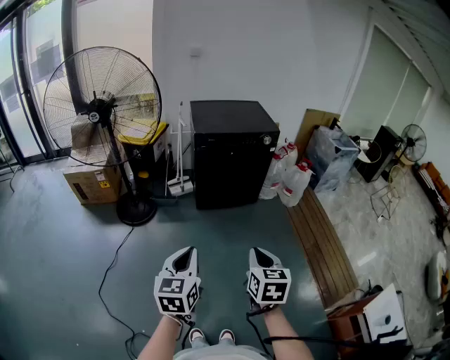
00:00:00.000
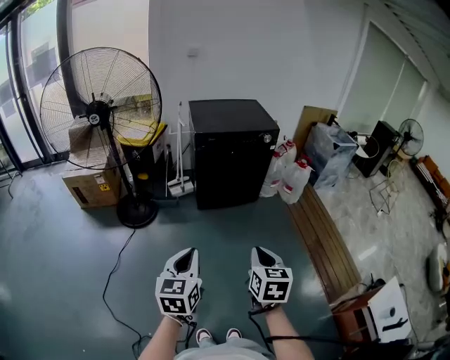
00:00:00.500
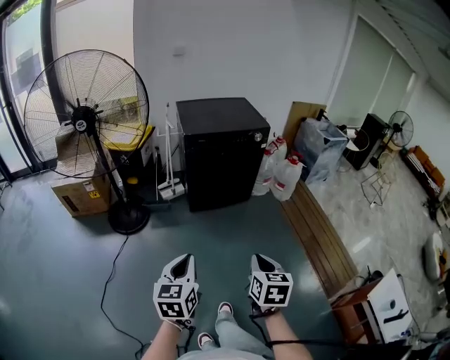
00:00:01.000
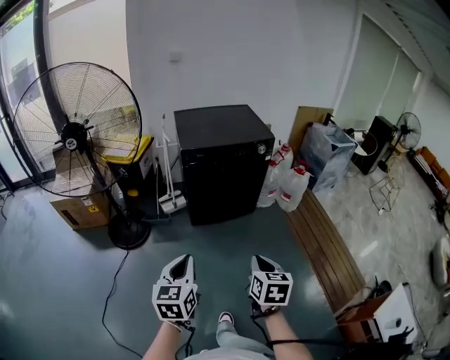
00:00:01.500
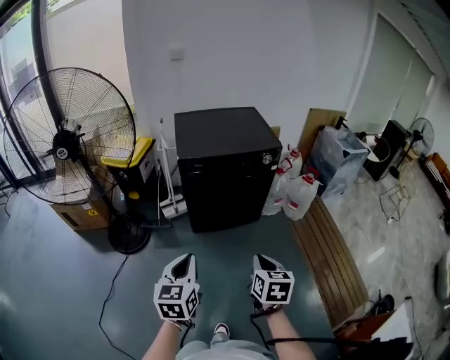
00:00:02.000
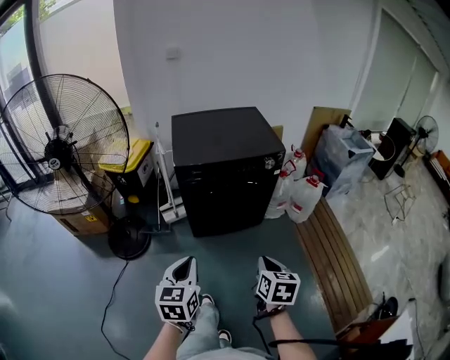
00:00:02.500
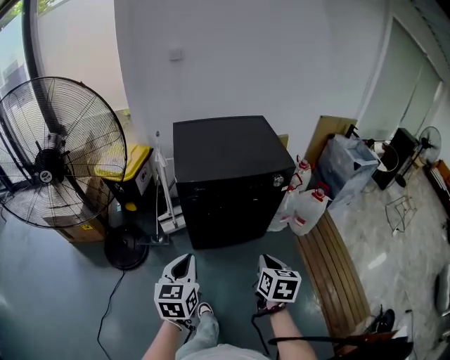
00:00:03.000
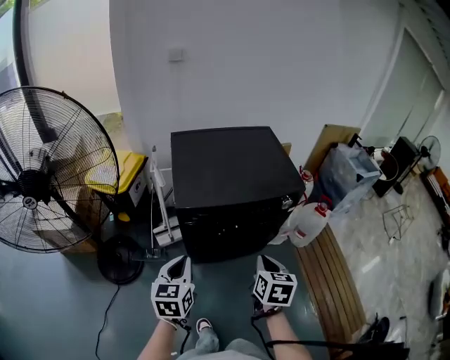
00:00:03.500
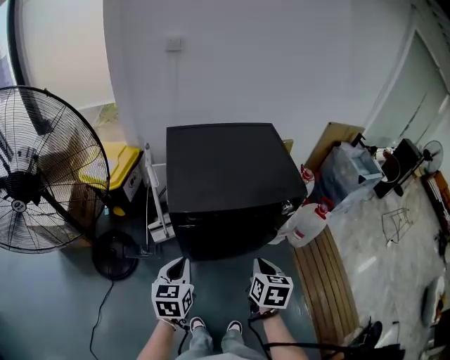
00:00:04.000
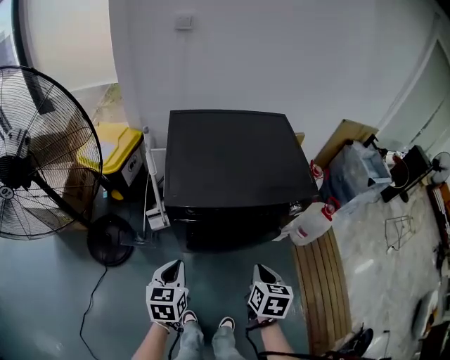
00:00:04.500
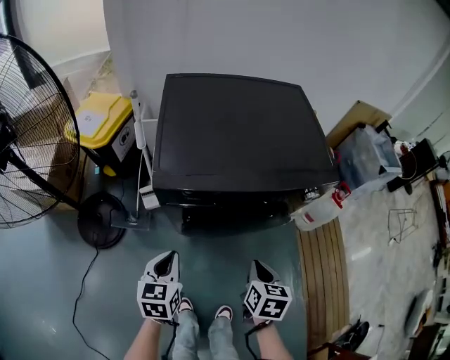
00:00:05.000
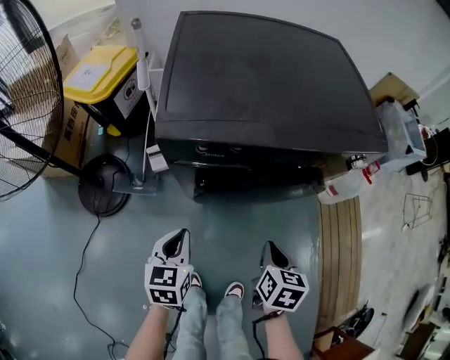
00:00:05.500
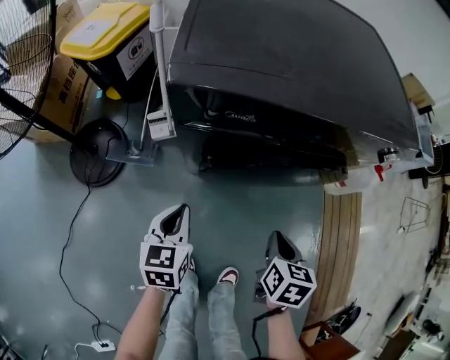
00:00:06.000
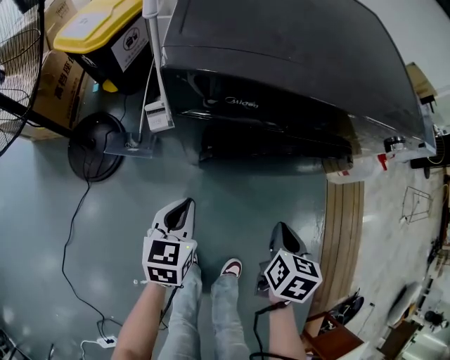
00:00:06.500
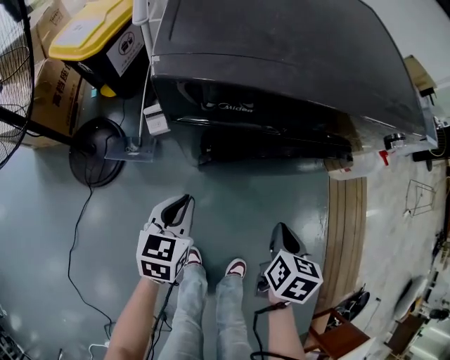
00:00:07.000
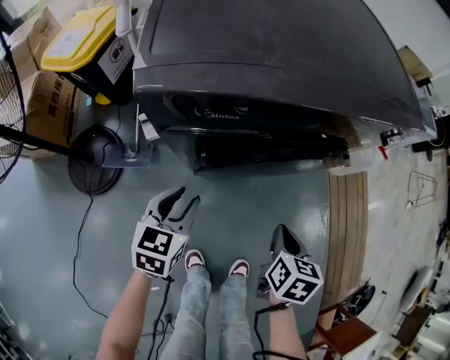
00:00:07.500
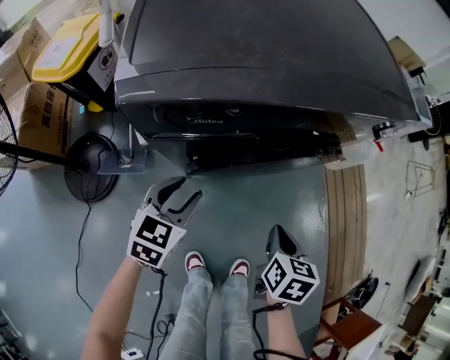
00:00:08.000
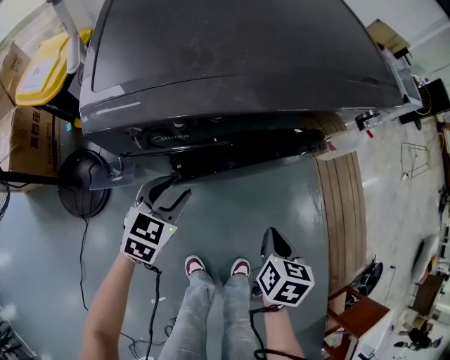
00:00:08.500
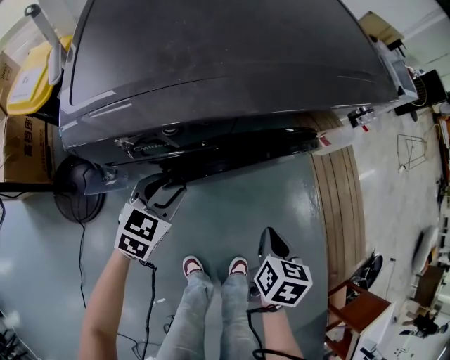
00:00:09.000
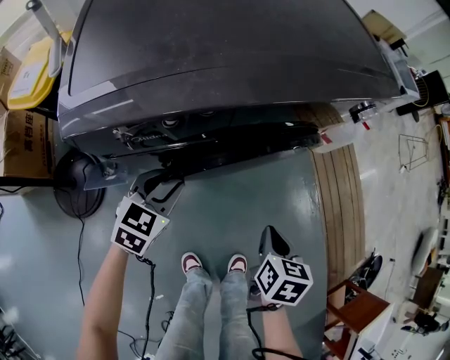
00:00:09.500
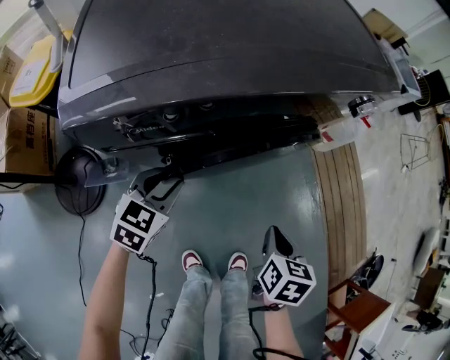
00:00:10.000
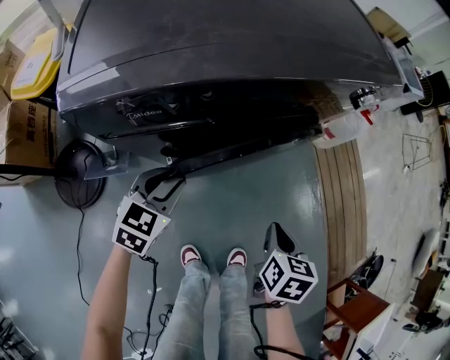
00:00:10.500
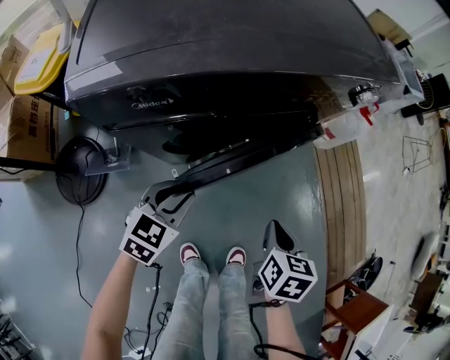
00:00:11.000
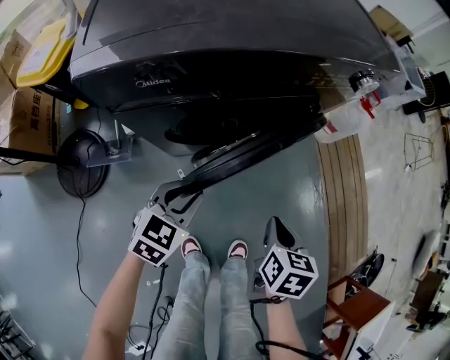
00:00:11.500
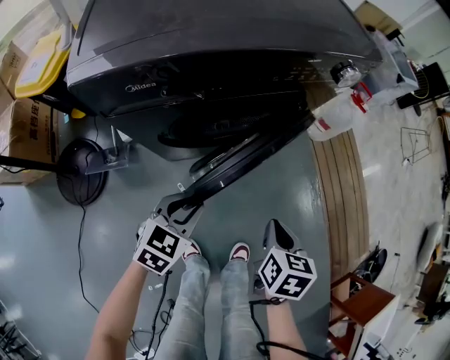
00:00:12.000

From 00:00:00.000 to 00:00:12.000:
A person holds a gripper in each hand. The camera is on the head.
From 00:00:00.000 to 00:00:02.000: Both grippers travel together forward, some 25 cm.
From 00:00:02.000 to 00:00:04.000: Both grippers travel together forward, some 35 cm.
From 00:00:04.000 to 00:00:06.000: Both grippers move downward, some 30 cm.
From 00:00:06.000 to 00:00:08.000: The left gripper goes some 10 cm forward, rotates about 30 degrees, and opens up.
From 00:00:08.000 to 00:00:10.000: The grippers make only small movements.
From 00:00:10.000 to 00:00:12.000: The right gripper shifts by roughly 5 cm; the left gripper moves to the right and backward, some 15 cm.

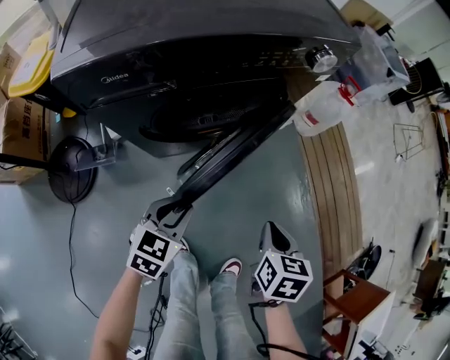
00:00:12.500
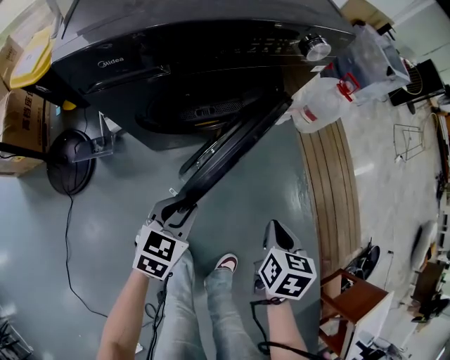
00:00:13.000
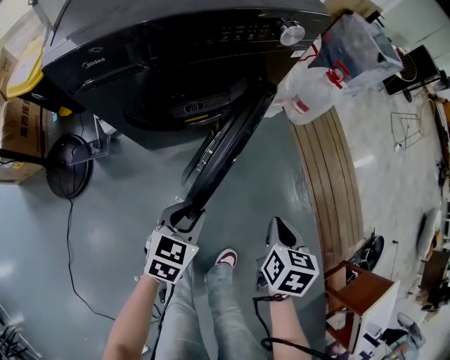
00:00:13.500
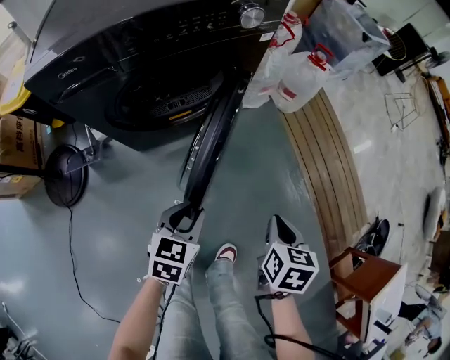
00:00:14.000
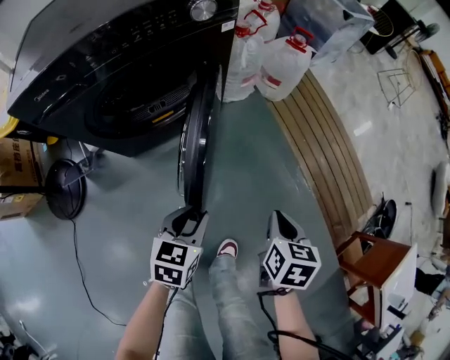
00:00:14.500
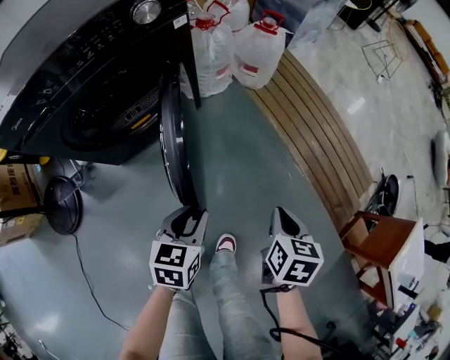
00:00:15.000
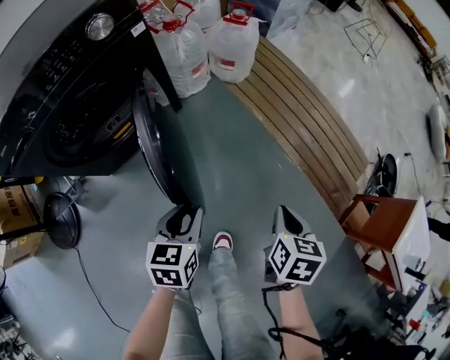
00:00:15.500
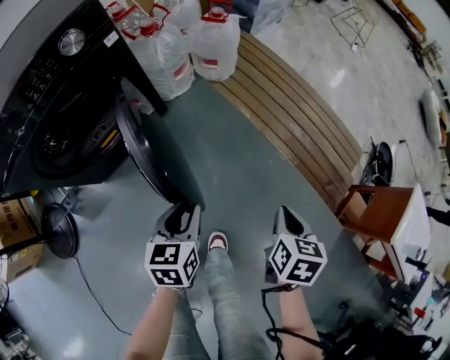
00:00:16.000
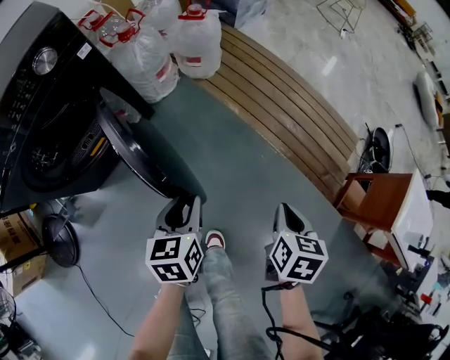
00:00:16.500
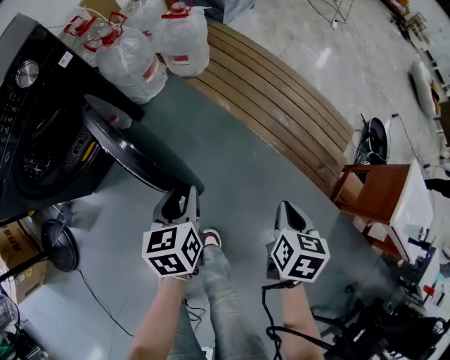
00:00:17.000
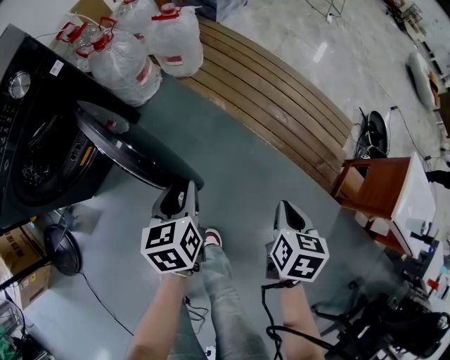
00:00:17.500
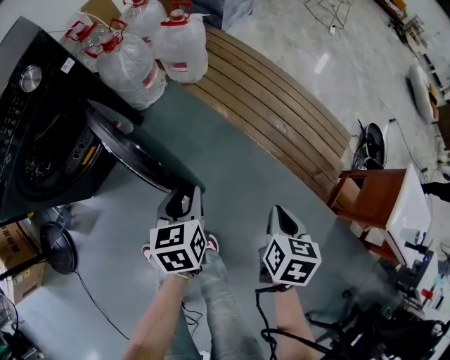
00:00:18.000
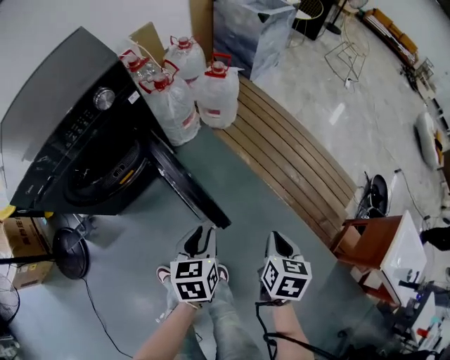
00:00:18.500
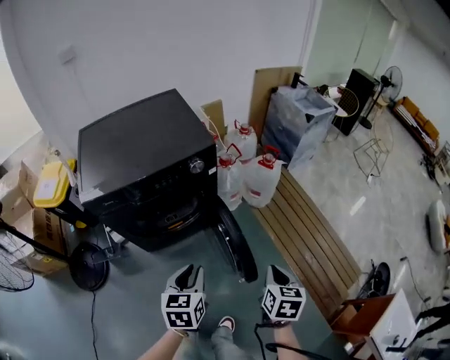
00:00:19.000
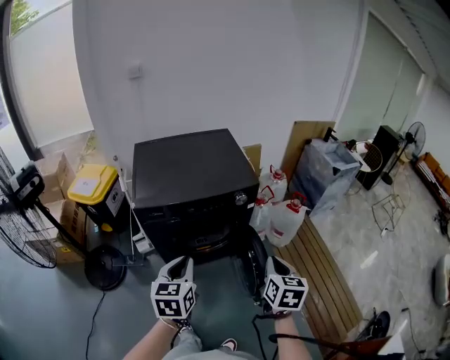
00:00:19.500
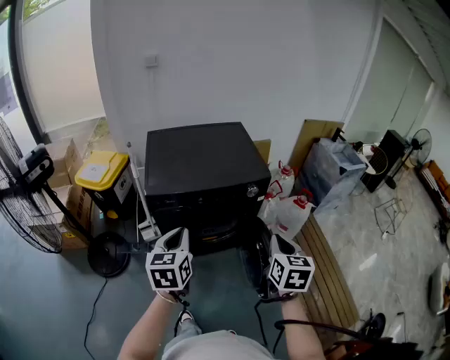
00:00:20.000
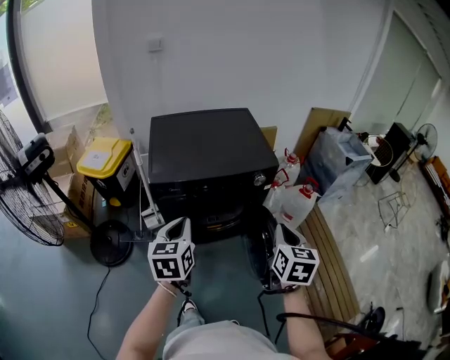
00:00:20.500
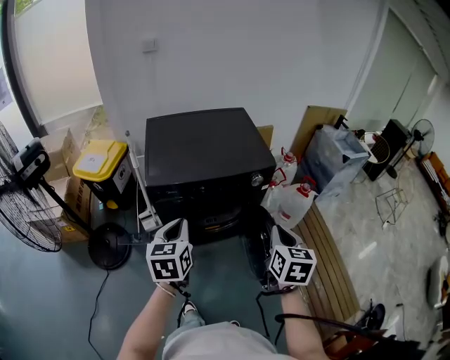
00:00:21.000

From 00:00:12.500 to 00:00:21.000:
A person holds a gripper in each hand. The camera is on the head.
From 00:00:12.500 to 00:00:14.500: The grippers both shift to the right by approximately 20 cm.
From 00:00:14.500 to 00:00:16.500: The right gripper shifts approximately 20 cm to the right, and turns by roughly 20 degrees, while the left gripper travels to the right and forward by about 20 cm.
From 00:00:16.500 to 00:00:19.000: Both grippers travel together upward and to the left, some 30 cm. The right gripper rotates approximately 30 degrees.
From 00:00:19.000 to 00:00:21.000: The right gripper heads upward, to the left and forward, covering approximately 25 cm, and turns by approximately 20 degrees. The left gripper travels to the left and upward by roughly 25 cm, and turns by about 20 degrees.

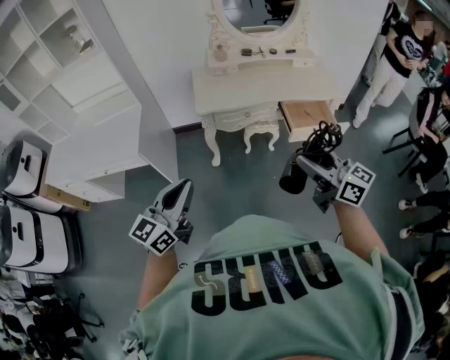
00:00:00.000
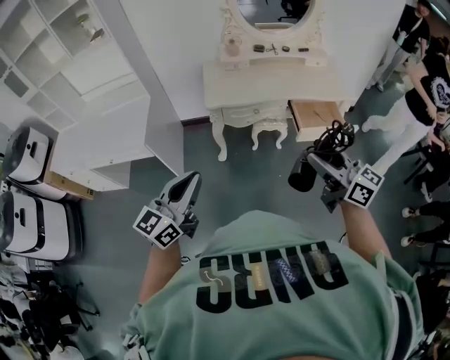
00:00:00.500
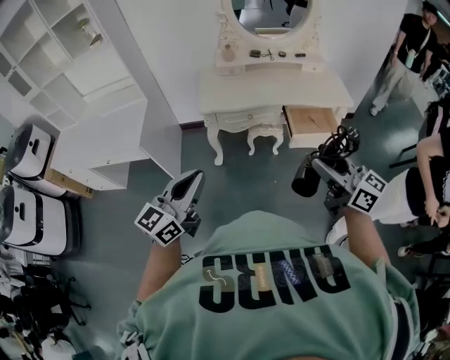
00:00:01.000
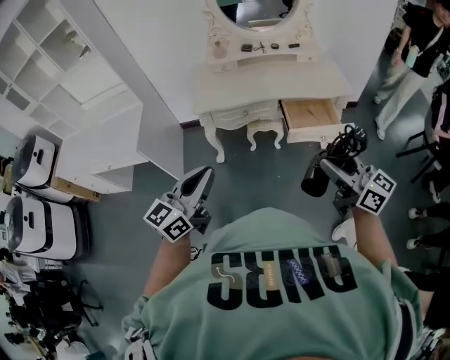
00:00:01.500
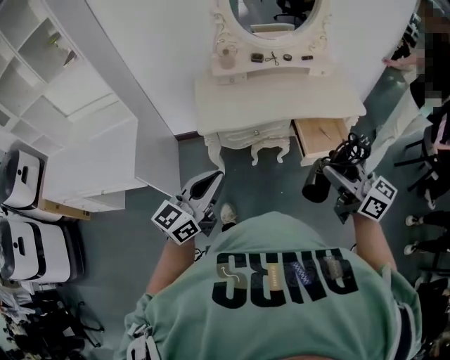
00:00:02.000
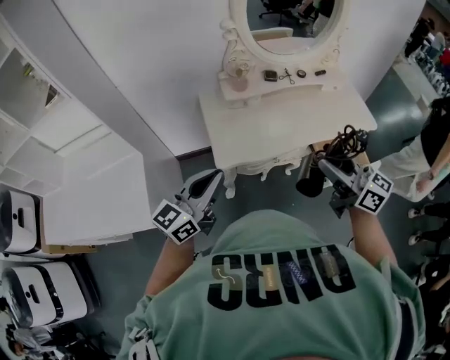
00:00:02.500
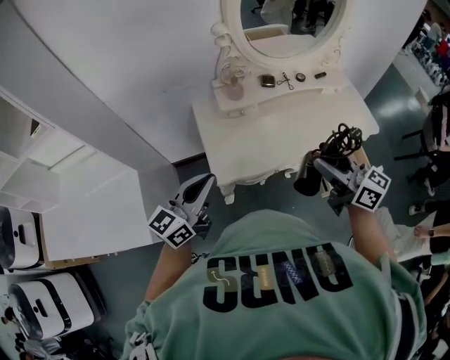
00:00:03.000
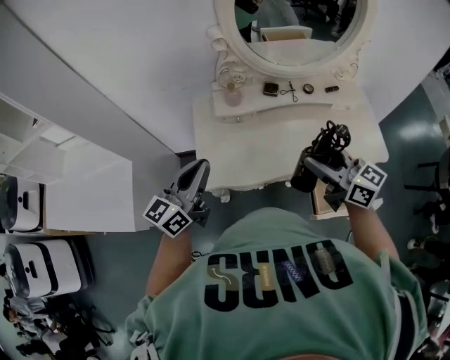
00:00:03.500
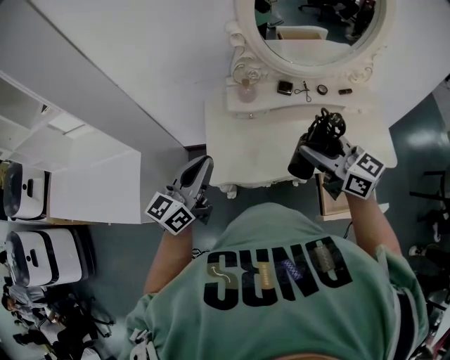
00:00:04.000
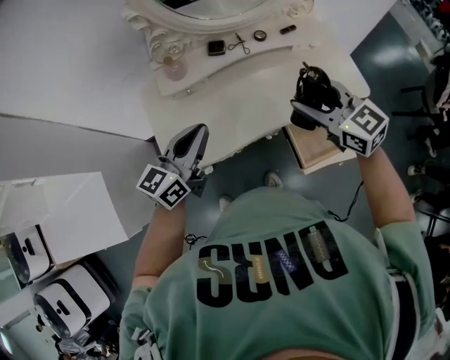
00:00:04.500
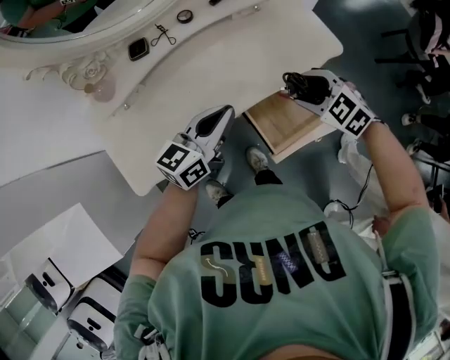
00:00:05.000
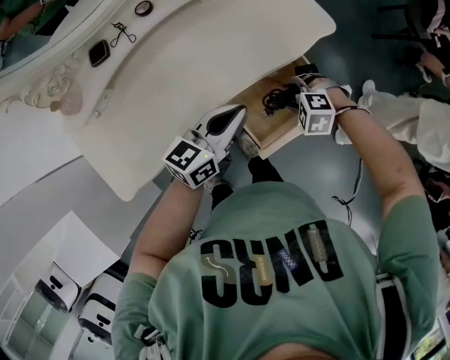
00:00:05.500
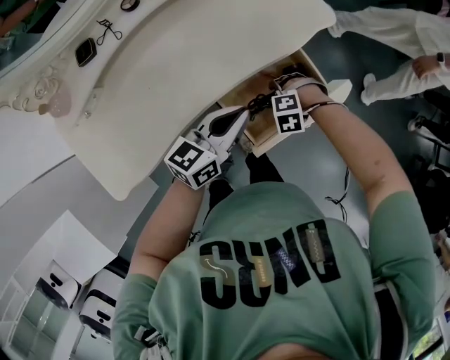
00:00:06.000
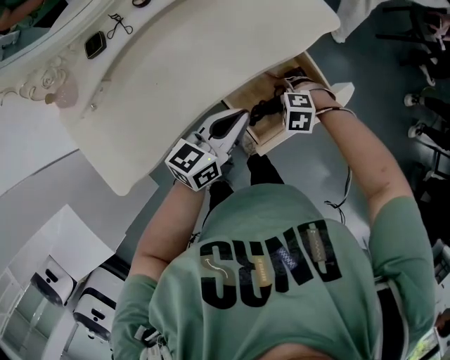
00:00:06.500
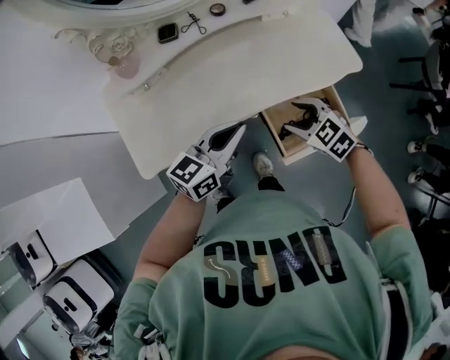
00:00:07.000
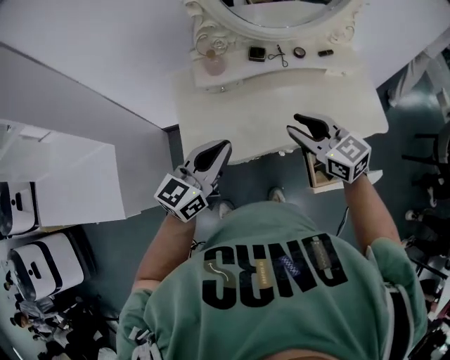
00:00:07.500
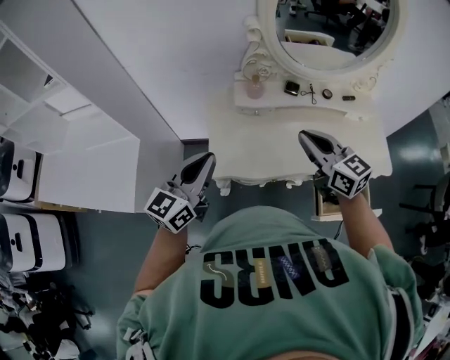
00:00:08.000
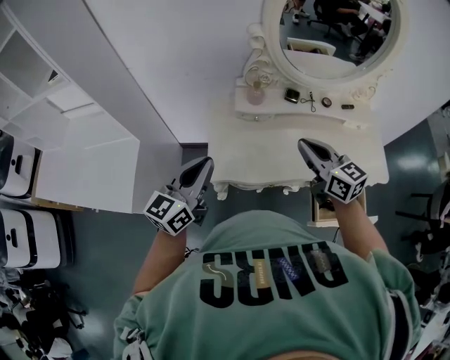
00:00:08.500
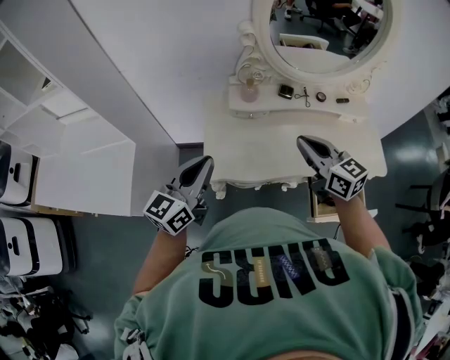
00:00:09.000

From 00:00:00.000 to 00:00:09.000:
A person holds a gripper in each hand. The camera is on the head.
From 00:00:00.000 to 00:00:02.000: The grippers both shift forward and to the right by about 20 cm.
From 00:00:02.000 to 00:00:04.500: The pair of grippers is taken forward, approximately 40 cm. The right gripper swivels approximately 30 degrees.
From 00:00:04.500 to 00:00:07.000: The right gripper heads downward, covering approximately 25 cm, and changes its angle by about 30 degrees.
From 00:00:07.000 to 00:00:09.000: Both grippers travel together to the left and upward, roughly 40 cm. The left gripper turns by roughly 40 degrees. Meanwhile the right gripper tips its fingers upward by roughly 40 degrees, and closes up.
